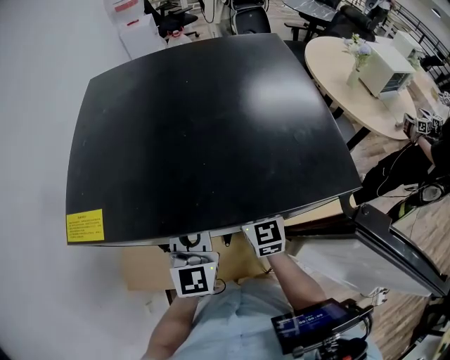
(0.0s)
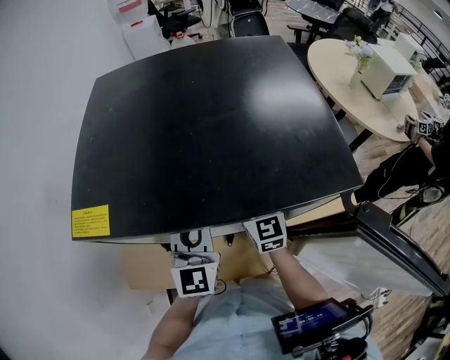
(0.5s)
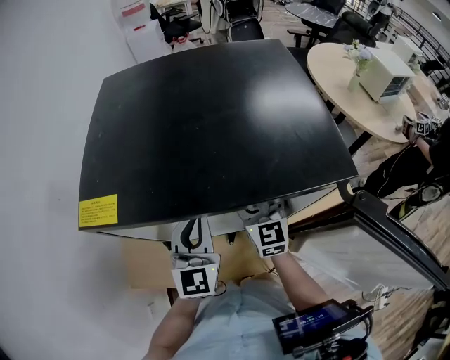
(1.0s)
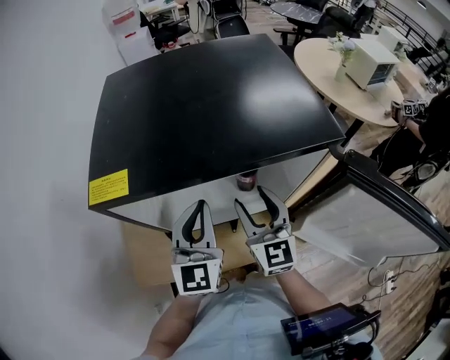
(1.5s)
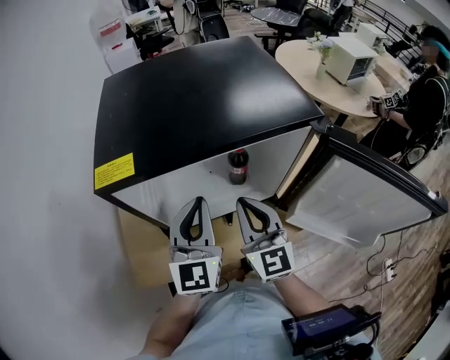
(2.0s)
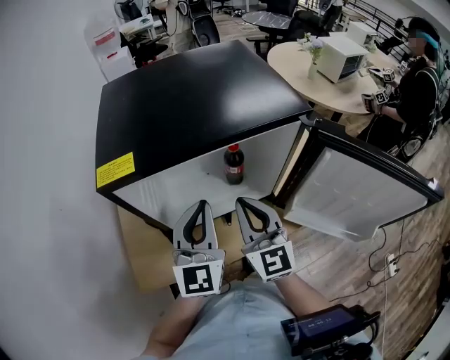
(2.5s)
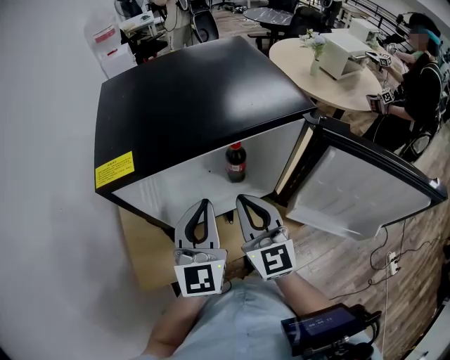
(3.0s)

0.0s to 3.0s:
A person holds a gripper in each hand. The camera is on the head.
0.0s to 1.5s: The left gripper shifts about 5 cm backward; the right gripper goes some 15 cm backward and upward.
1.5s to 3.0s: The left gripper changes place by approximately 5 cm; the right gripper goes roughly 5 cm backward, and closes.

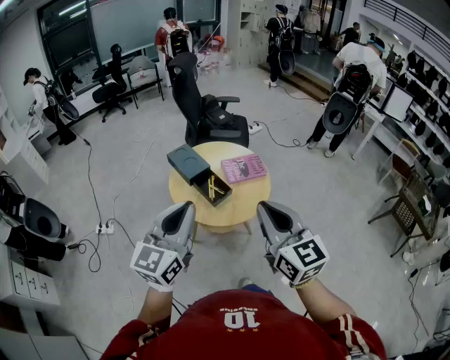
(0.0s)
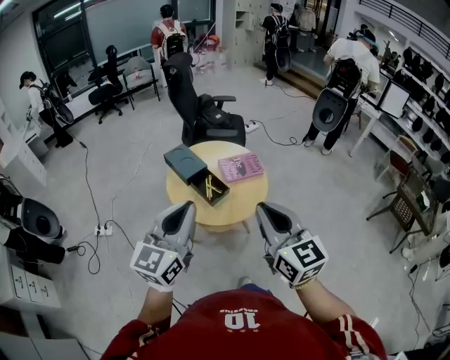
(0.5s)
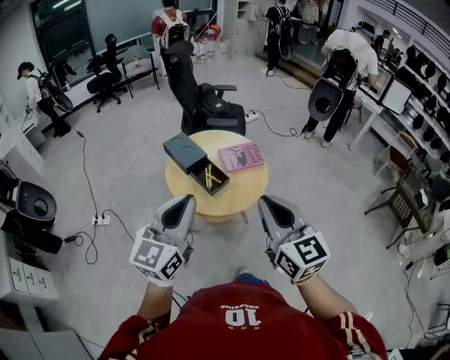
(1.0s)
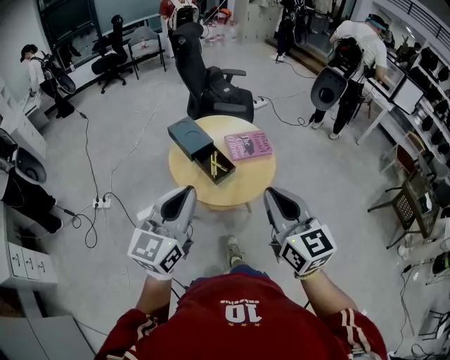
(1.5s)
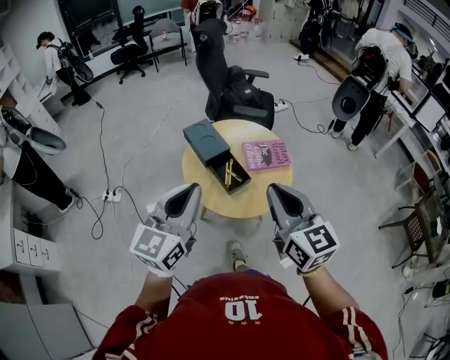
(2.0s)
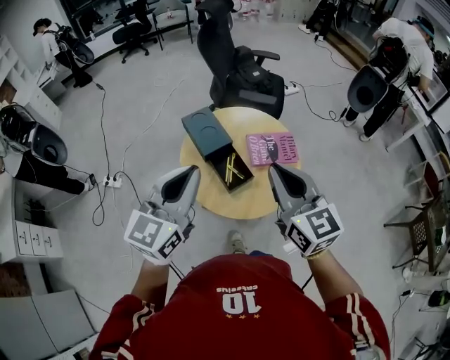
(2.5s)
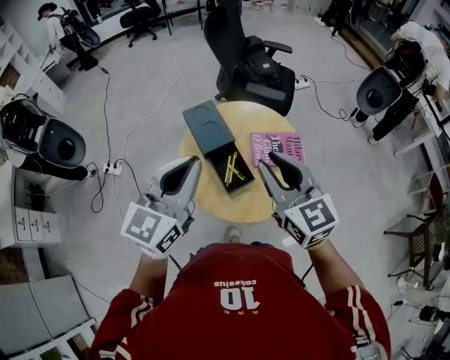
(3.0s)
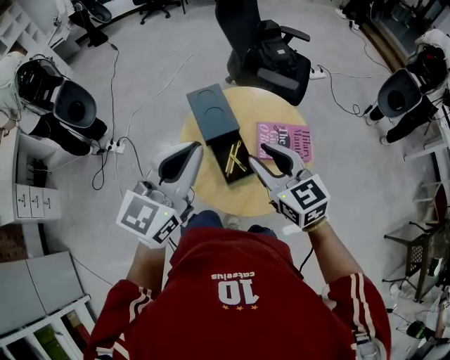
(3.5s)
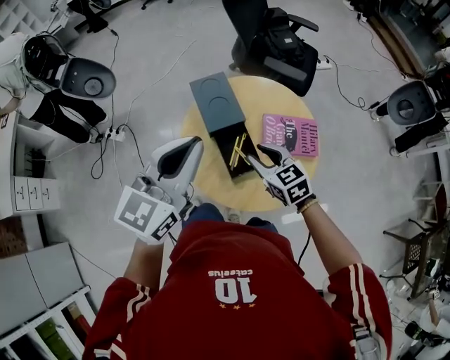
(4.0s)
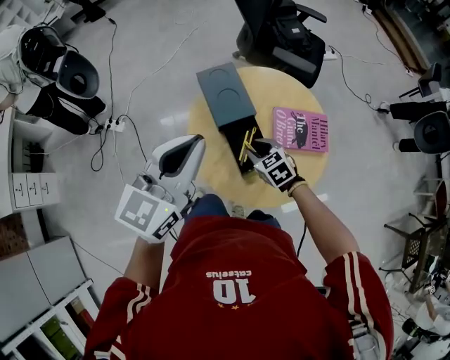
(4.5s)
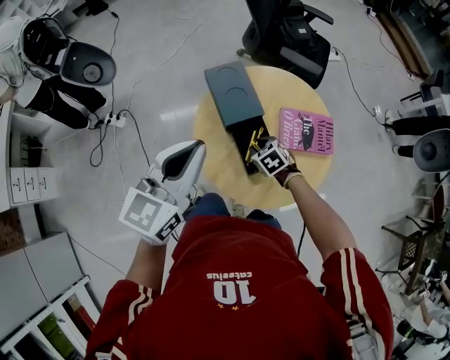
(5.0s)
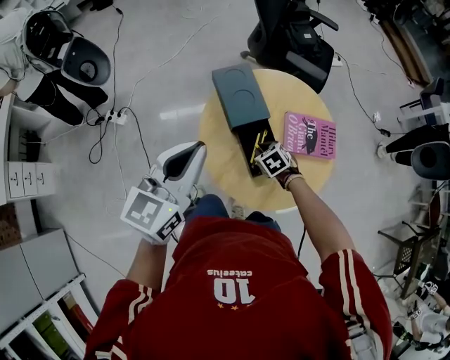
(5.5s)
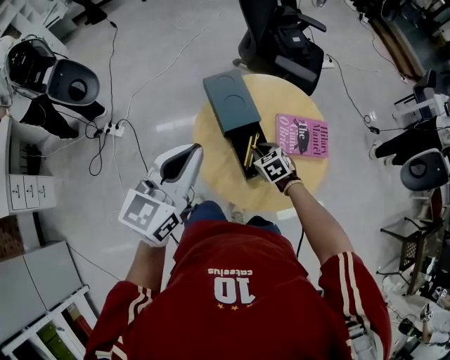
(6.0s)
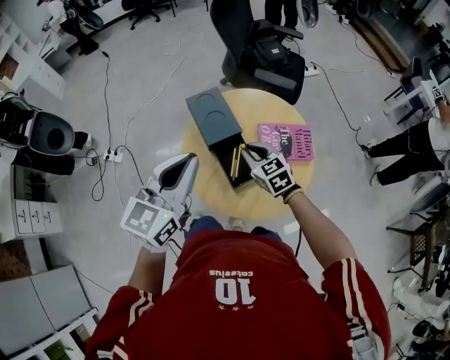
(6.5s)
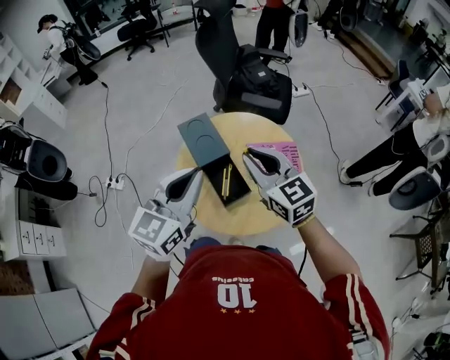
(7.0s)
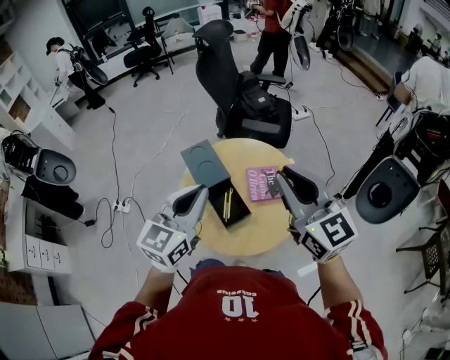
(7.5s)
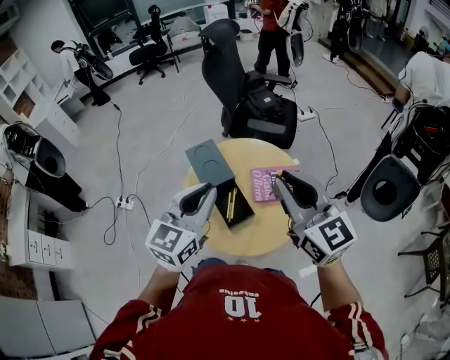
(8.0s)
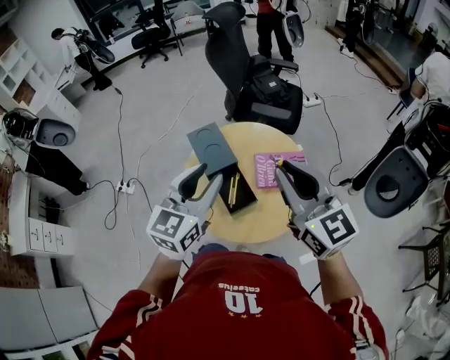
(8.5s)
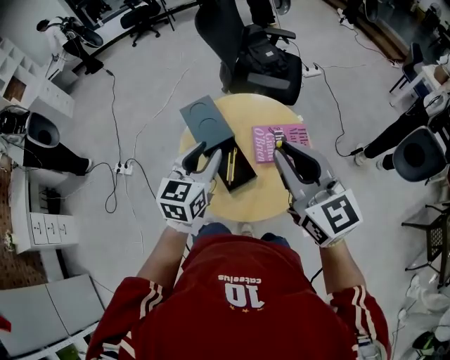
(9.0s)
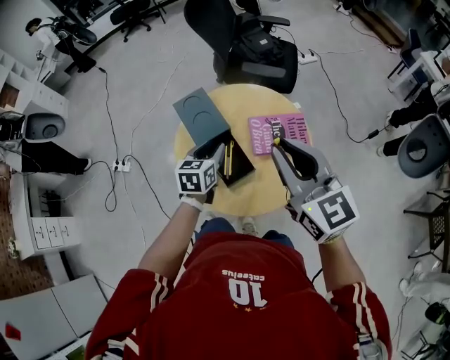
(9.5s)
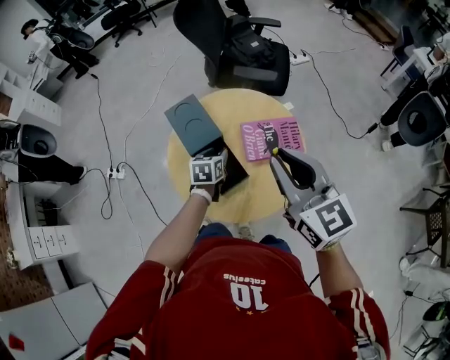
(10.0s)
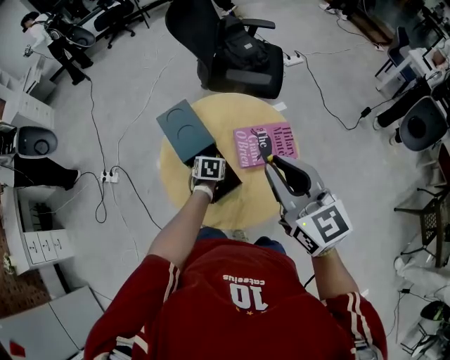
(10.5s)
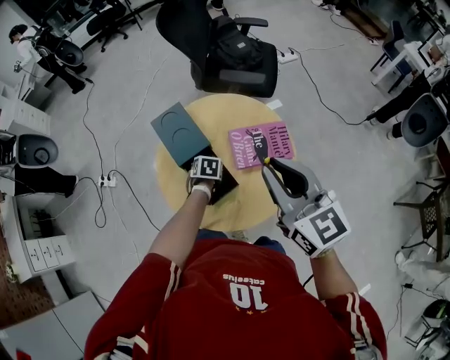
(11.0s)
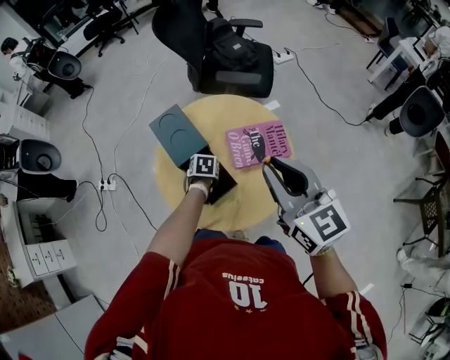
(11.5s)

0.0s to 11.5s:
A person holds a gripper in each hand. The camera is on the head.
0.0s to 2.0s: The two grippers go roughly 10 cm forward.
2.0s to 4.0s: The left gripper goes about 20 cm forward. Meanwhile the right gripper heads downward and forward, covering some 35 cm, swivels approximately 40 degrees, and opens.
4.0s to 6.0s: The right gripper shifts roughly 15 cm downward, and turns by roughly 20 degrees. The left gripper goes roughly 5 cm to the left.
6.0s to 7.5s: The right gripper moves upward, about 40 cm, and angles its fingers upward, by about 60 degrees; the left gripper shifts about 15 cm to the right and upward.
7.5s to 9.5s: The left gripper goes about 25 cm downward and forward, rotates about 30 degrees, and opens its fingers; the right gripper goes approximately 10 cm downward.
9.5s to 11.5s: The left gripper travels downward by roughly 20 cm, and angles its fingers downward, by some 40 degrees.

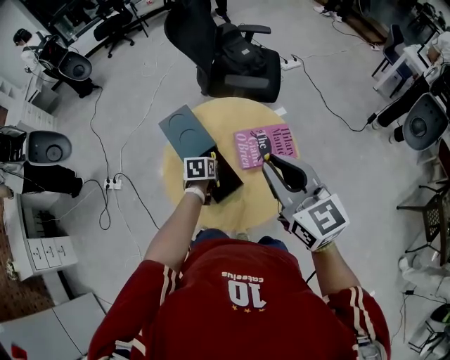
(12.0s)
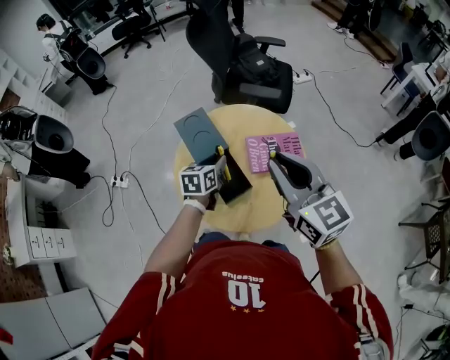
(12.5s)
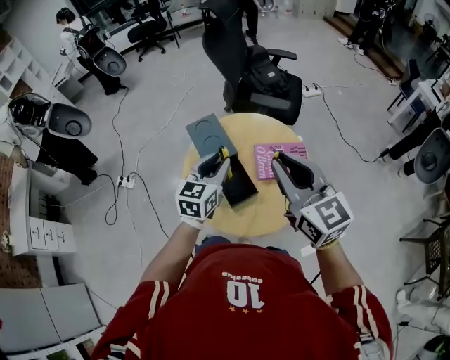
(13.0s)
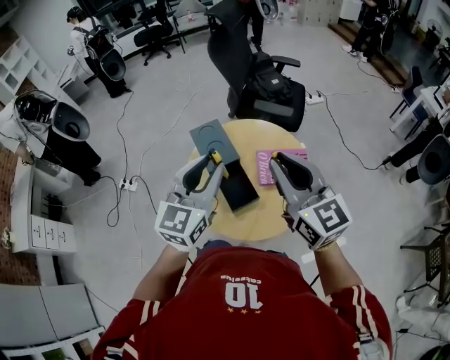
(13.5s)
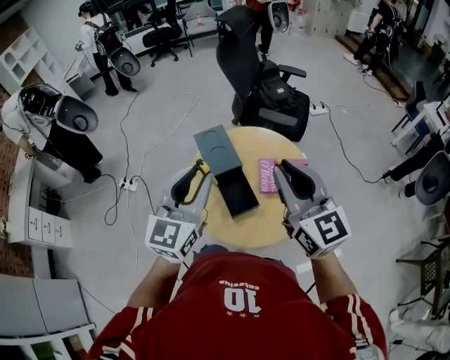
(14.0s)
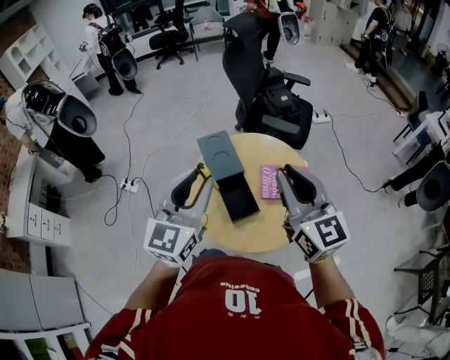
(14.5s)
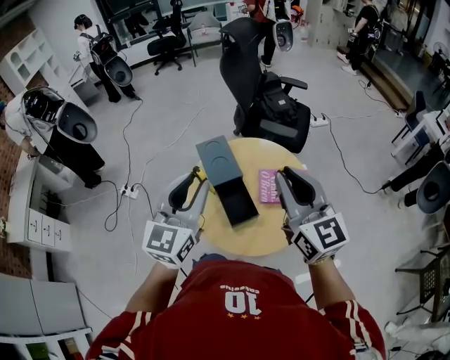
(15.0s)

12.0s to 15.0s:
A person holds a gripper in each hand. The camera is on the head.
12.0s to 13.5s: The left gripper heads upward, covering roughly 35 cm, and tips its fingers upward by roughly 50 degrees. Meanwhile the right gripper heads upward, covering roughly 5 cm.
13.5s to 15.0s: The left gripper moves approximately 5 cm.

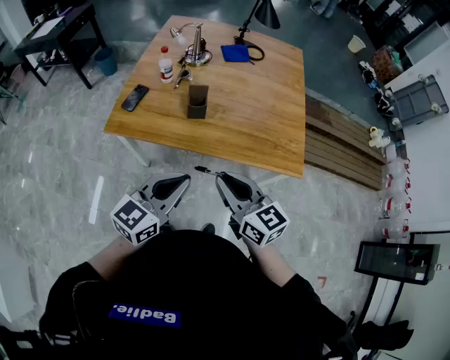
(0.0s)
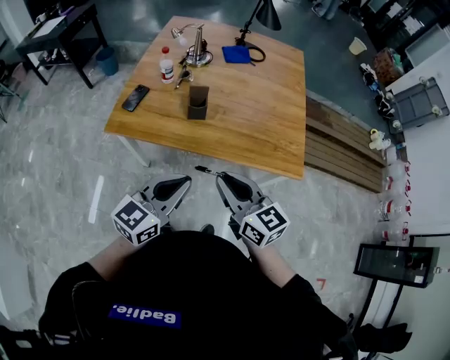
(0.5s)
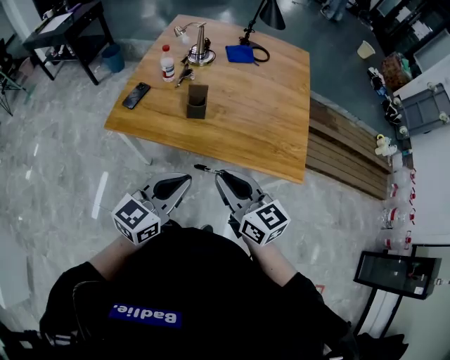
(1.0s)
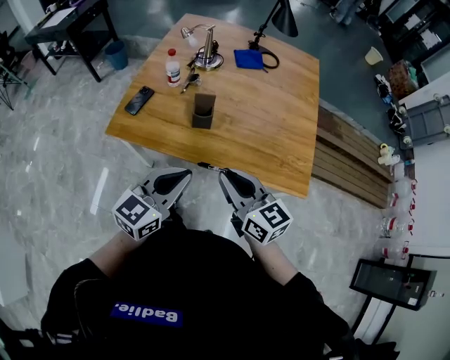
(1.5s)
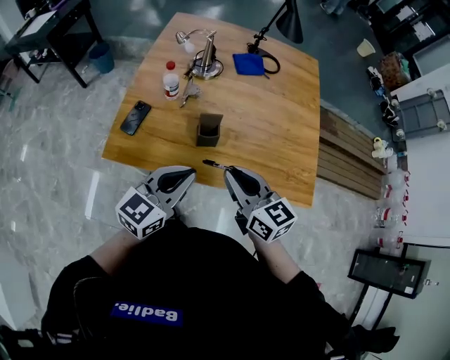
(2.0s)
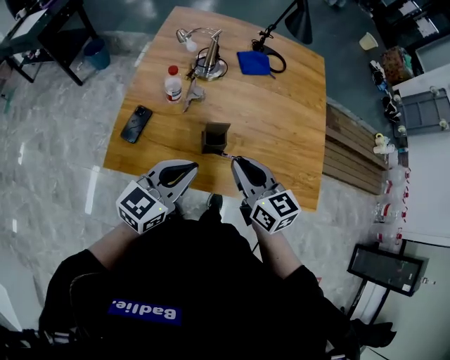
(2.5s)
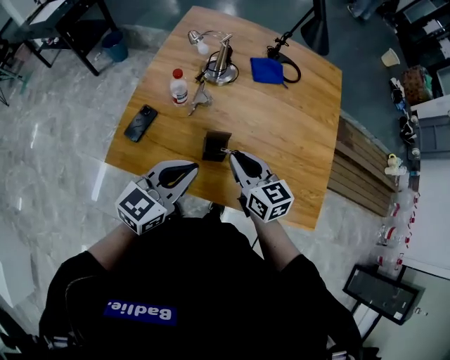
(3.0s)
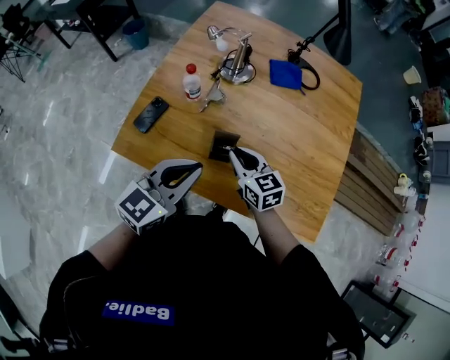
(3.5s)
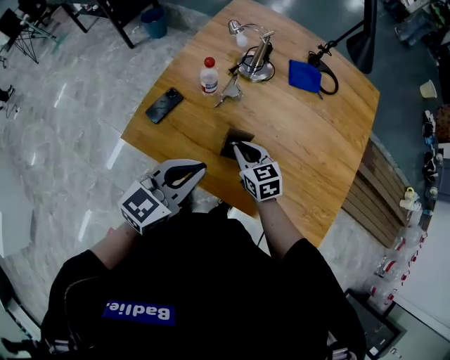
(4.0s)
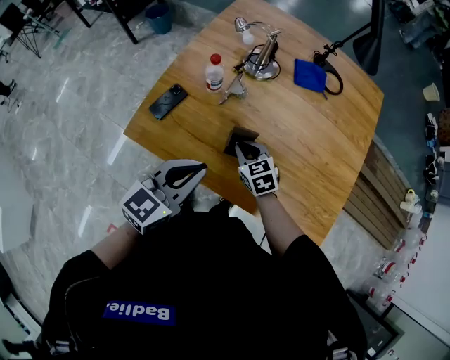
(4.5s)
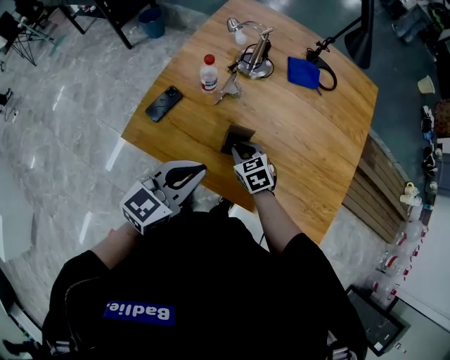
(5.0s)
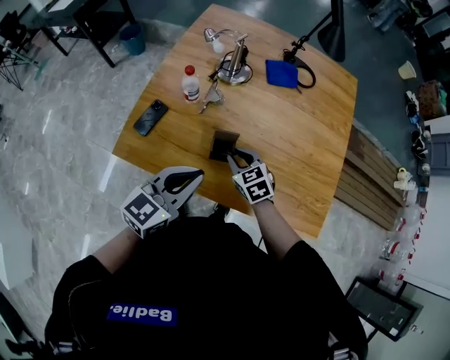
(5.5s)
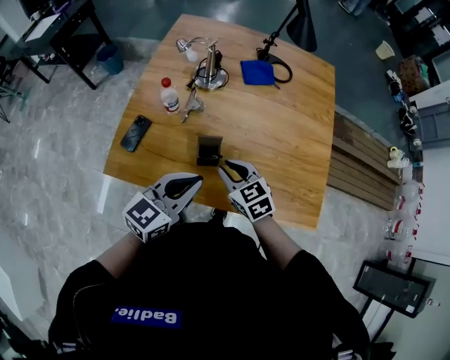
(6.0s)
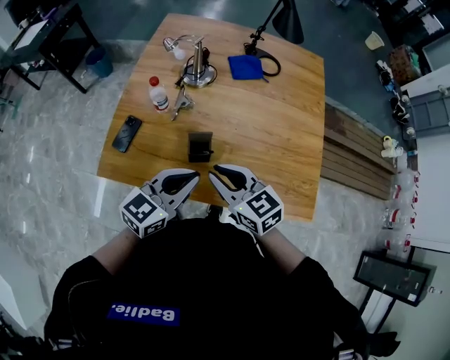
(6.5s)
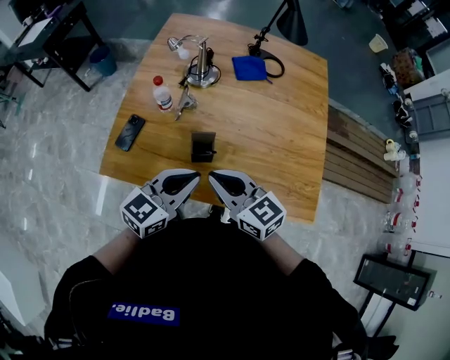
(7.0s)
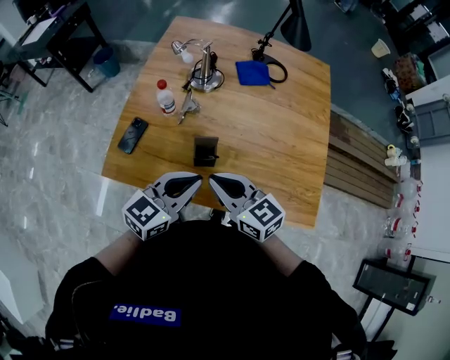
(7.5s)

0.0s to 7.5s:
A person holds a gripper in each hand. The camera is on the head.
0.0s to 2.0s: Both grippers move forward, about 20 cm.
2.0s to 4.0s: The right gripper travels forward and downward by about 25 cm, and changes its angle by some 30 degrees; the left gripper goes approximately 10 cm forward.
4.0s to 5.5s: The grippers stay close to where they were, moving slightly.
5.5s to 7.5s: The right gripper shifts roughly 20 cm upward and backward, and rotates roughly 30 degrees.

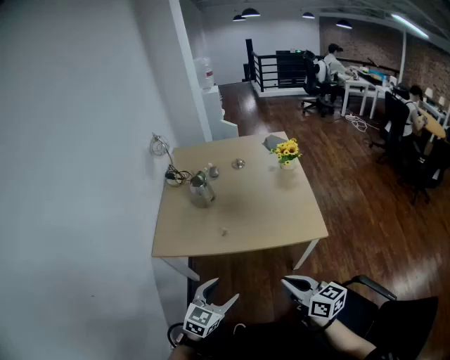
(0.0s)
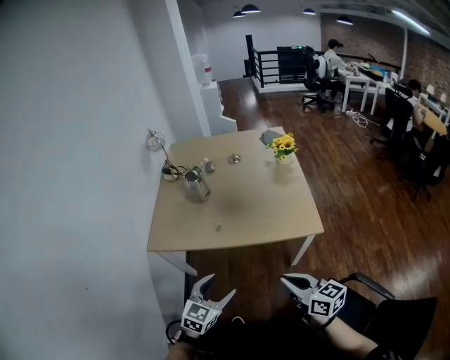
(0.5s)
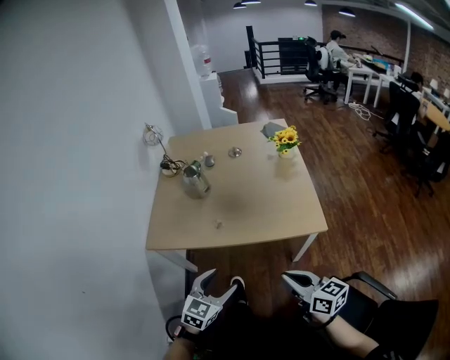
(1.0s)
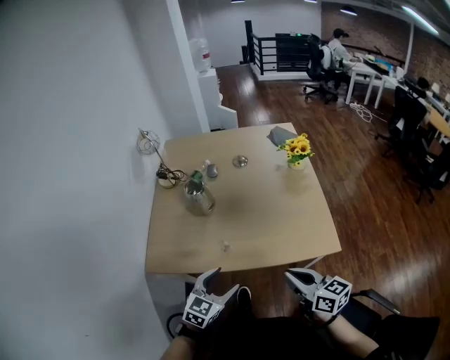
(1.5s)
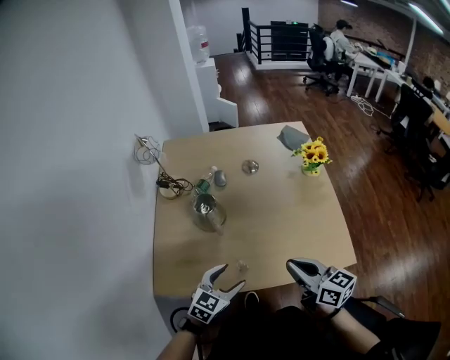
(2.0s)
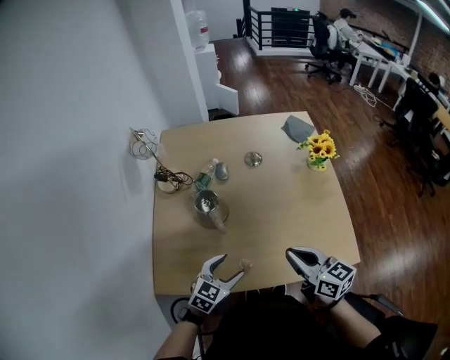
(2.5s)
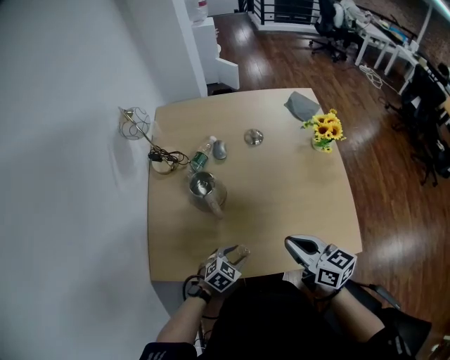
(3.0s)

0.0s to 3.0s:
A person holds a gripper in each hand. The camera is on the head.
0.0s to 1.5s: The two grippers go about 15 cm forward.
1.5s to 3.0s: The right gripper heads forward, covering approximately 20 cm; the left gripper travels forward and downward by about 25 cm, swivels approximately 30 degrees, and closes.
